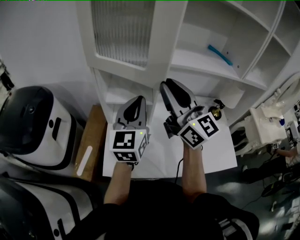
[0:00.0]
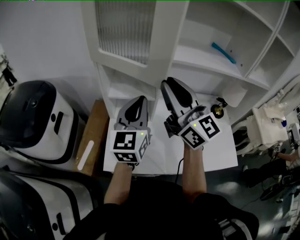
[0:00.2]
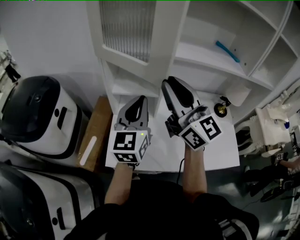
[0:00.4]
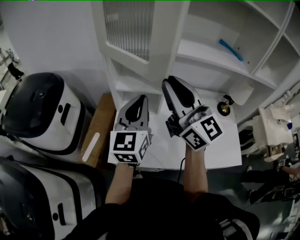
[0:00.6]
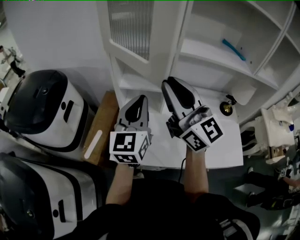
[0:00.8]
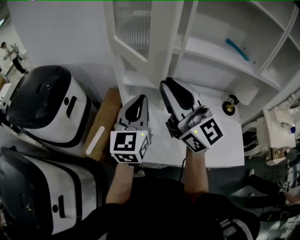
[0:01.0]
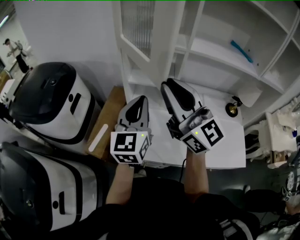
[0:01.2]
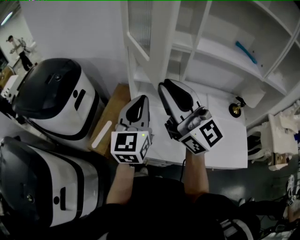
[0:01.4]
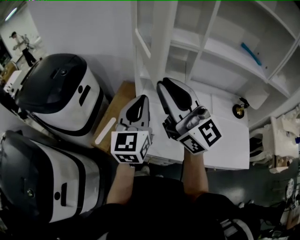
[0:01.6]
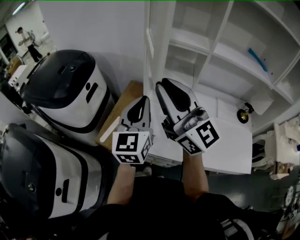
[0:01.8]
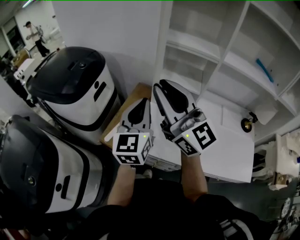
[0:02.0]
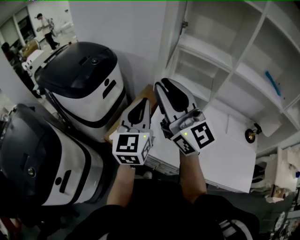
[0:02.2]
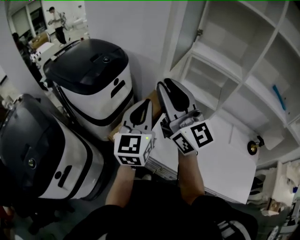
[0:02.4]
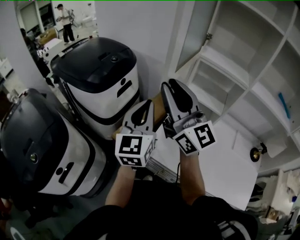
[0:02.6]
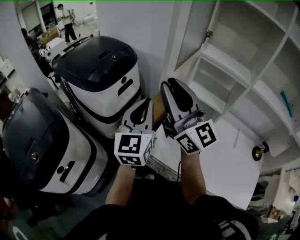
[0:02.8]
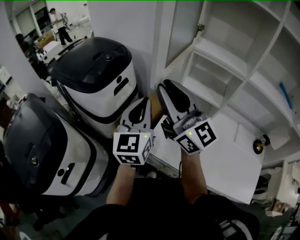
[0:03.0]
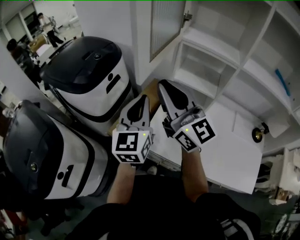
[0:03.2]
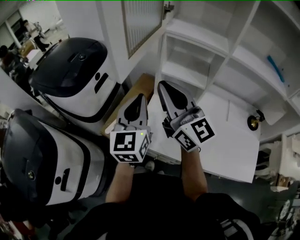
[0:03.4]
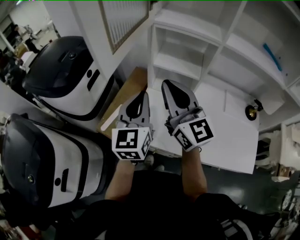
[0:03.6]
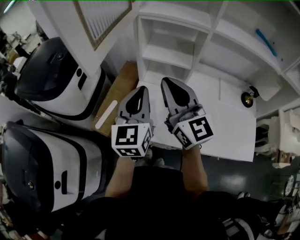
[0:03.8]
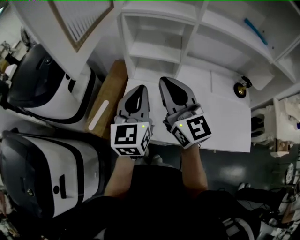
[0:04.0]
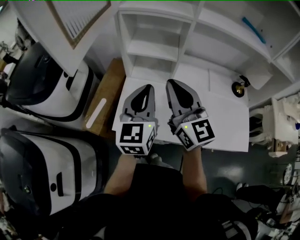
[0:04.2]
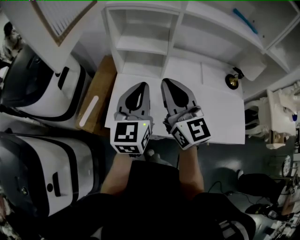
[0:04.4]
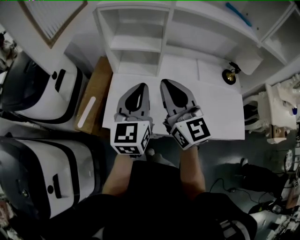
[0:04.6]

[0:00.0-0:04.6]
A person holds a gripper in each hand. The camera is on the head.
0.0 to 1.6 s: Both grippers move to the left and backward, some 15 cm.
1.6 to 3.0 s: The right gripper travels to the left and forward by about 15 cm; the left gripper is displaced to the left by about 15 cm.
3.0 to 4.6 s: The left gripper shifts by some 25 cm, and turns by some 30 degrees; the right gripper ends up about 30 cm from where it was, and turns by roughly 40 degrees.

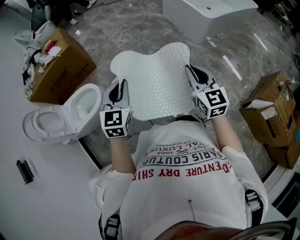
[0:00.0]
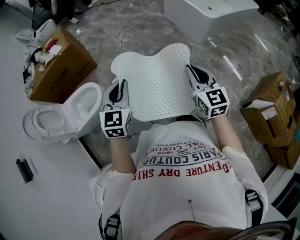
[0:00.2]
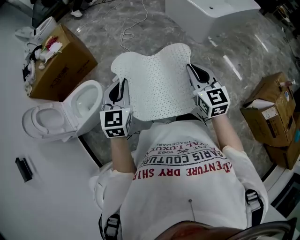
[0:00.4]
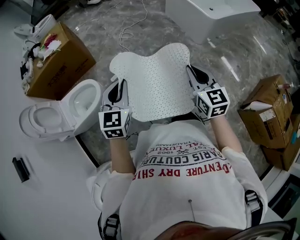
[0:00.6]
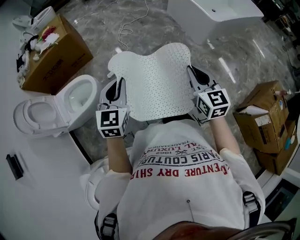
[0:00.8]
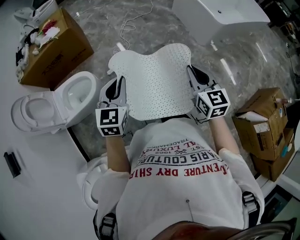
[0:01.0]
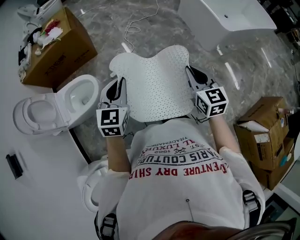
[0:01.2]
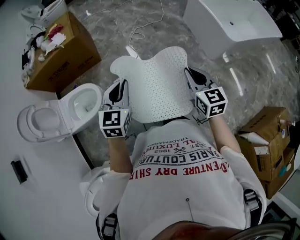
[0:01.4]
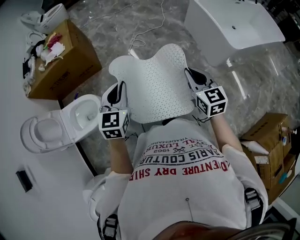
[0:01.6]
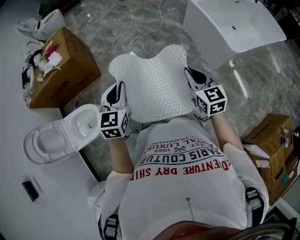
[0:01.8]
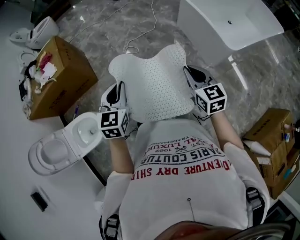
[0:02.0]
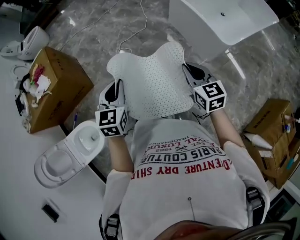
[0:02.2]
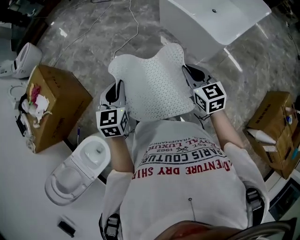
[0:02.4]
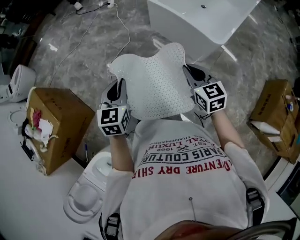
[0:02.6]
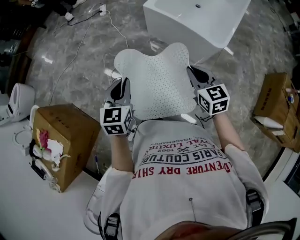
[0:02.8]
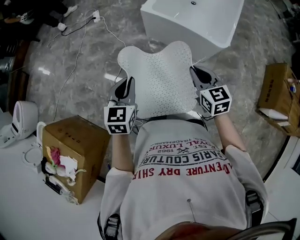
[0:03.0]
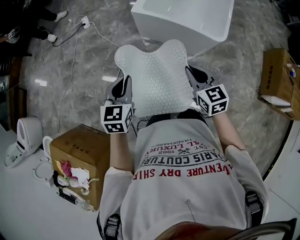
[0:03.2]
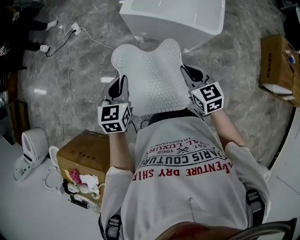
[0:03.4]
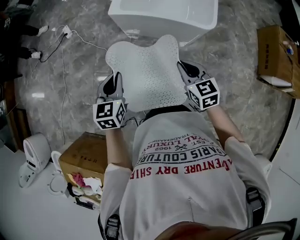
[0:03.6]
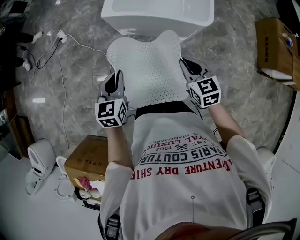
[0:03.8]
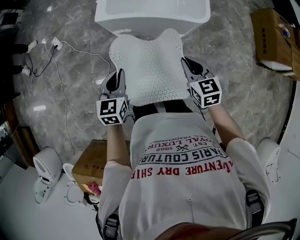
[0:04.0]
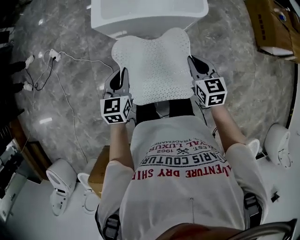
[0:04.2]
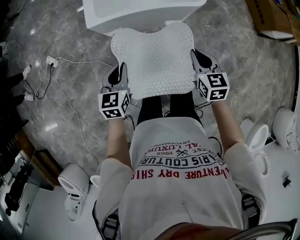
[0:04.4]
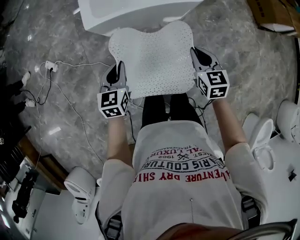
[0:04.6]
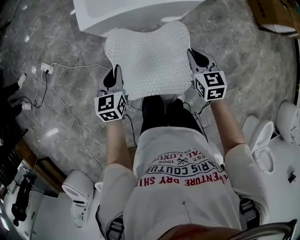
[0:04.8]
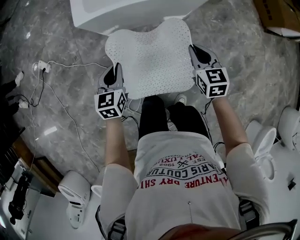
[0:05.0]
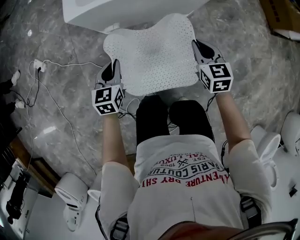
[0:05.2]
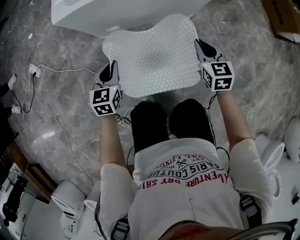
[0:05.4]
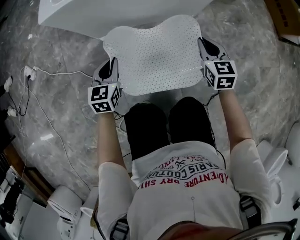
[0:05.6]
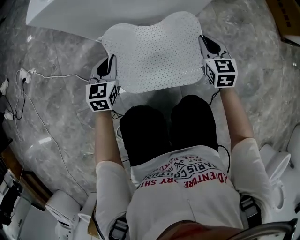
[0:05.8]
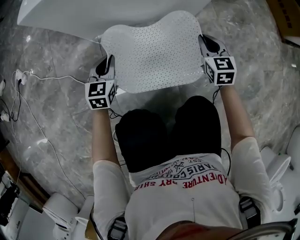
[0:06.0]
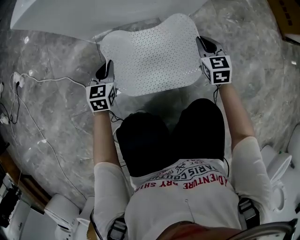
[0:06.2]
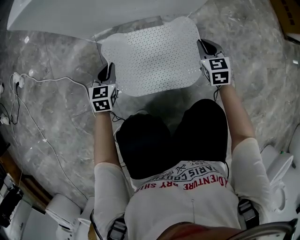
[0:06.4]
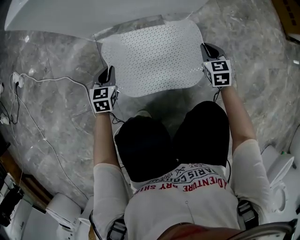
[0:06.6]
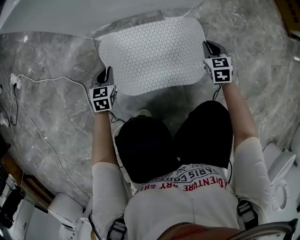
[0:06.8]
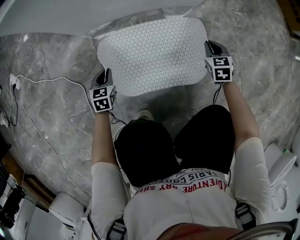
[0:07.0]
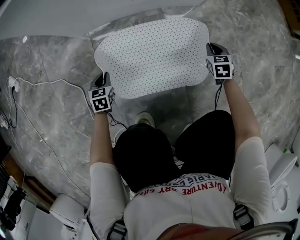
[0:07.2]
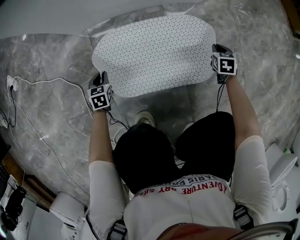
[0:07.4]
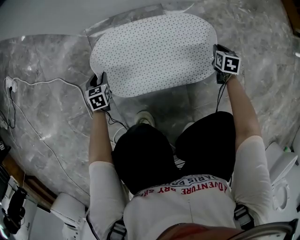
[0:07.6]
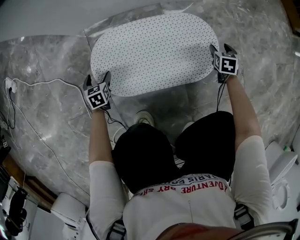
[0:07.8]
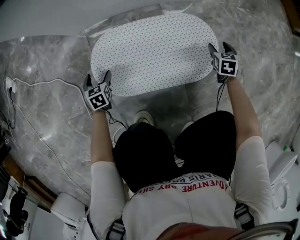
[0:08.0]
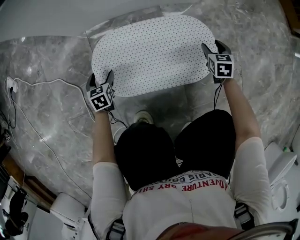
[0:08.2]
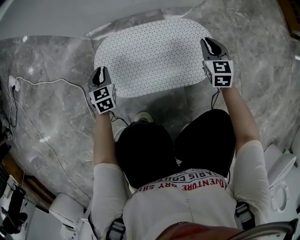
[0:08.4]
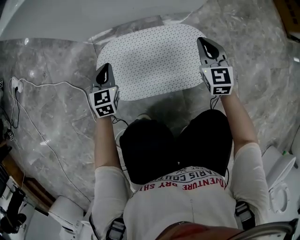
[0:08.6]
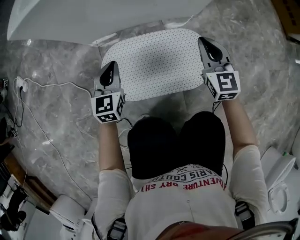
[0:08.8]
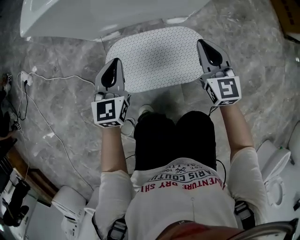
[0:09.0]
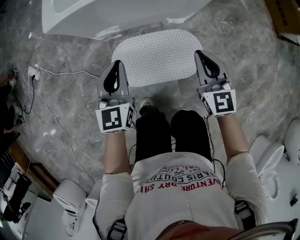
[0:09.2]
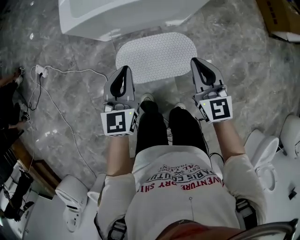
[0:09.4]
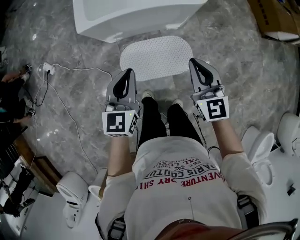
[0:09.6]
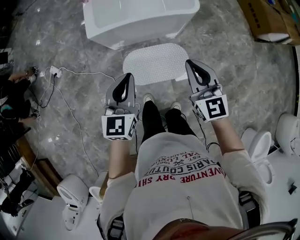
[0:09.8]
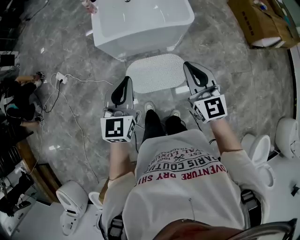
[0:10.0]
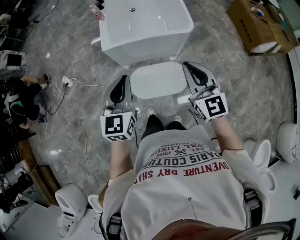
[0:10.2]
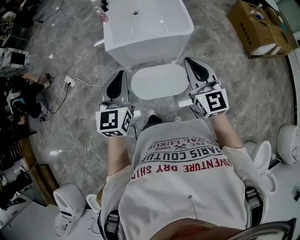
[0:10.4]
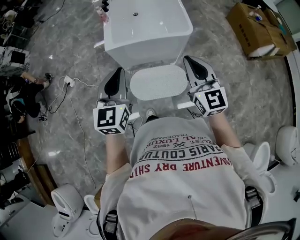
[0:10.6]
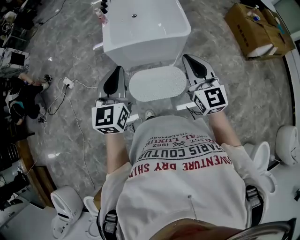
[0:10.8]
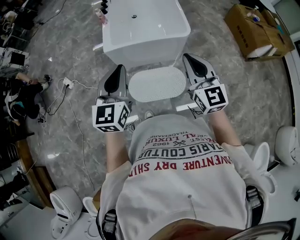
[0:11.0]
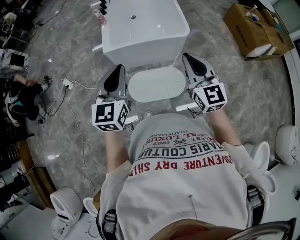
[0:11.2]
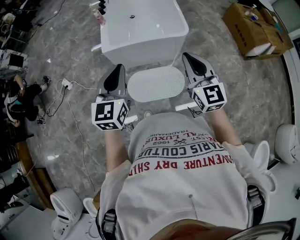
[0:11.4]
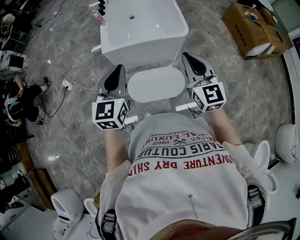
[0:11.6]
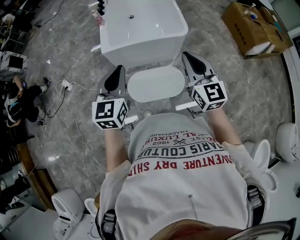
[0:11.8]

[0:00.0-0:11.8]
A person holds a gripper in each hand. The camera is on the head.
0.0 to 1.4 s: Both grippers move forward, approximately 20 cm.
1.4 to 3.0 s: Both grippers are carried some 60 cm. The left gripper turns by about 40 degrees. Meanwhile the right gripper changes its angle by roughly 40 degrees.
3.0 to 4.4 s: The left gripper moves some 30 cm, and changes its angle by roughly 40 degrees, while the right gripper goes approximately 15 cm downward, and changes its angle by roughly 40 degrees.
4.4 to 6.0 s: The grippers both shift downward by approximately 50 cm.
6.0 to 7.4 s: The right gripper is displaced downward and to the right by roughly 25 cm, and turns by about 30 degrees. Meanwhile the left gripper moves downward, approximately 25 cm, and changes its angle by approximately 30 degrees.
7.4 to 8.8 s: The left gripper is displaced upward and to the right by roughly 25 cm, rotates some 30 degrees, and opens, then closes again. The right gripper travels upward and to the left by approximately 30 cm, tips its fingers upward by roughly 40 degrees, and opens and closes again.
8.8 to 10.4 s: The two grippers go roughly 70 cm upward.
10.4 to 11.8 s: The grippers make only small movements.

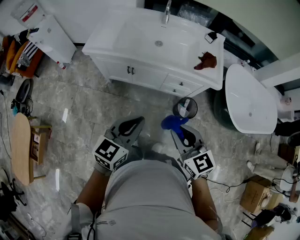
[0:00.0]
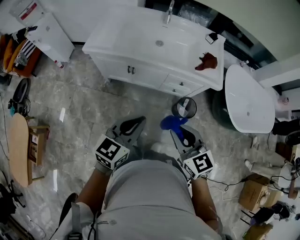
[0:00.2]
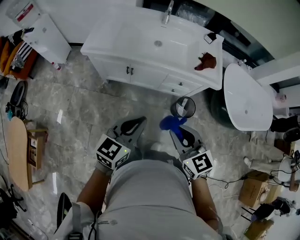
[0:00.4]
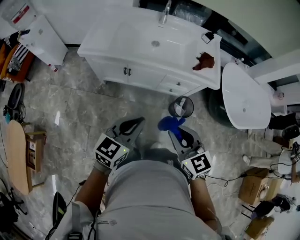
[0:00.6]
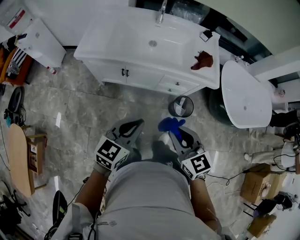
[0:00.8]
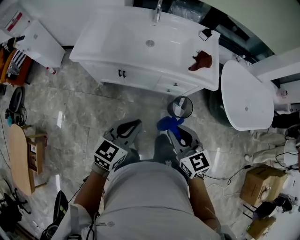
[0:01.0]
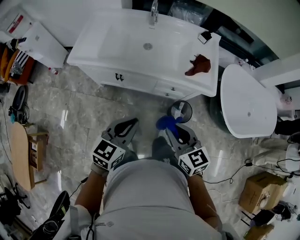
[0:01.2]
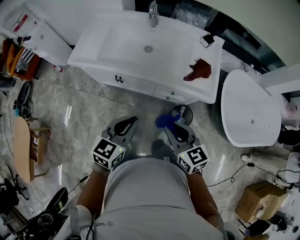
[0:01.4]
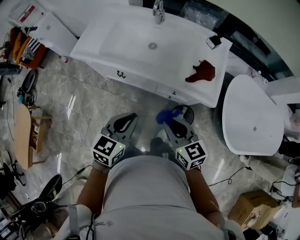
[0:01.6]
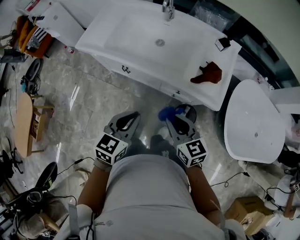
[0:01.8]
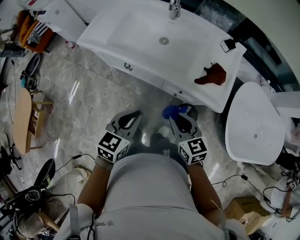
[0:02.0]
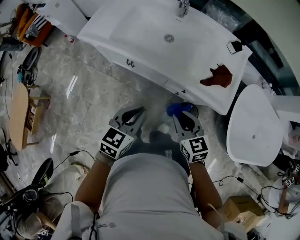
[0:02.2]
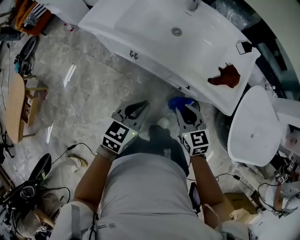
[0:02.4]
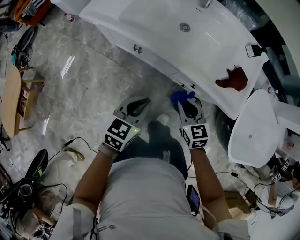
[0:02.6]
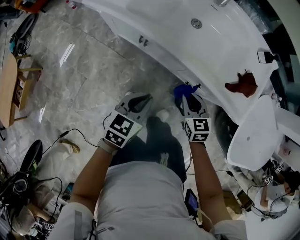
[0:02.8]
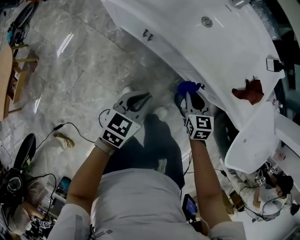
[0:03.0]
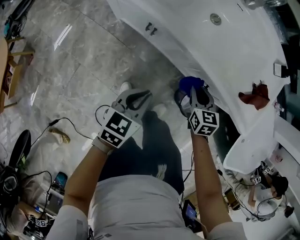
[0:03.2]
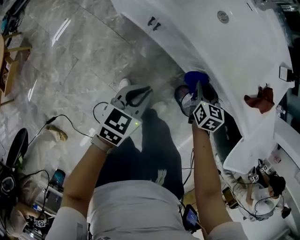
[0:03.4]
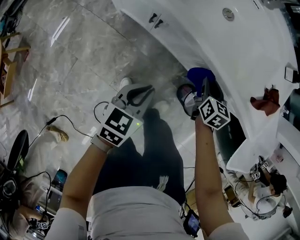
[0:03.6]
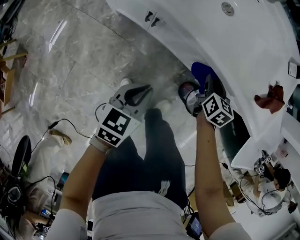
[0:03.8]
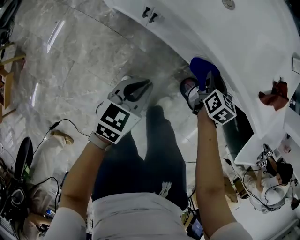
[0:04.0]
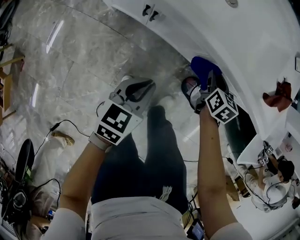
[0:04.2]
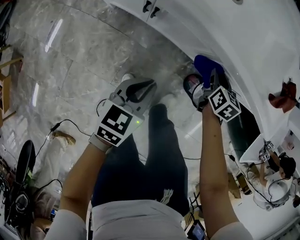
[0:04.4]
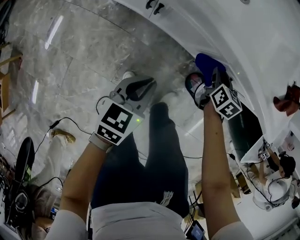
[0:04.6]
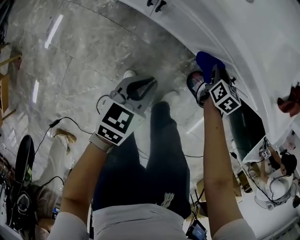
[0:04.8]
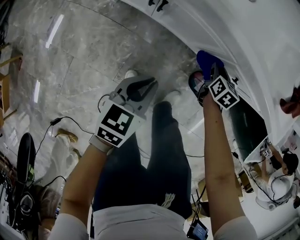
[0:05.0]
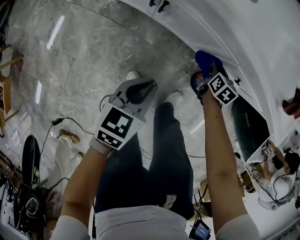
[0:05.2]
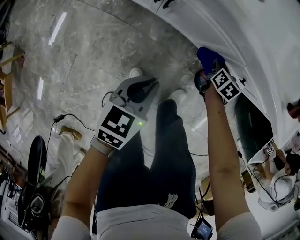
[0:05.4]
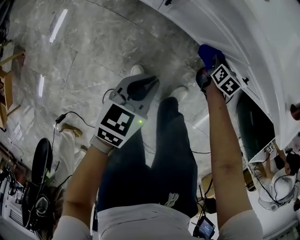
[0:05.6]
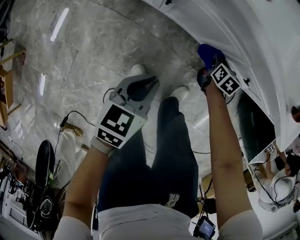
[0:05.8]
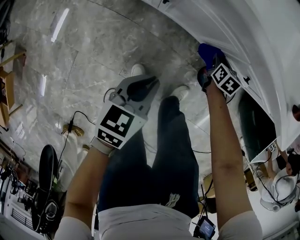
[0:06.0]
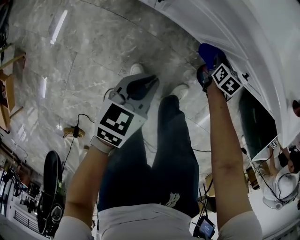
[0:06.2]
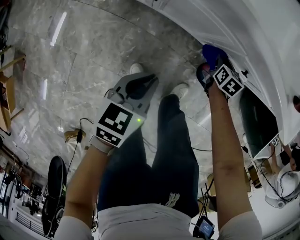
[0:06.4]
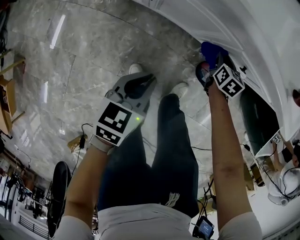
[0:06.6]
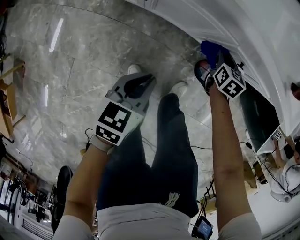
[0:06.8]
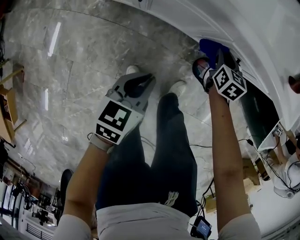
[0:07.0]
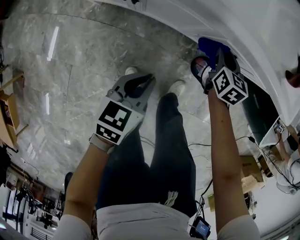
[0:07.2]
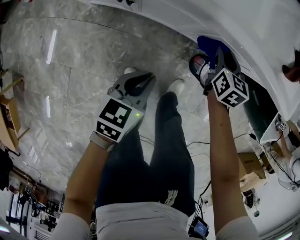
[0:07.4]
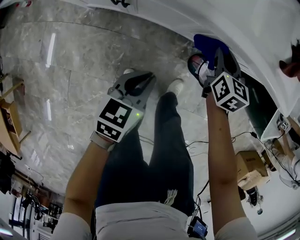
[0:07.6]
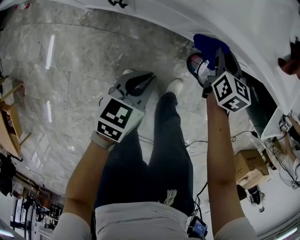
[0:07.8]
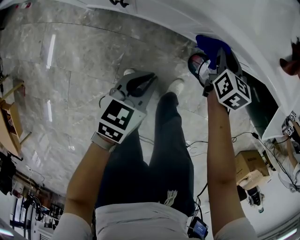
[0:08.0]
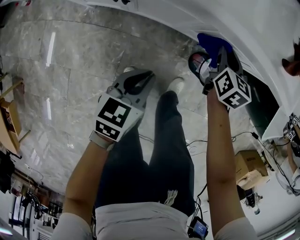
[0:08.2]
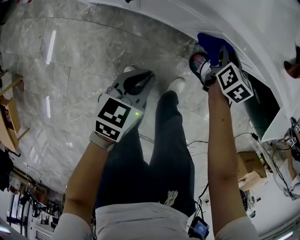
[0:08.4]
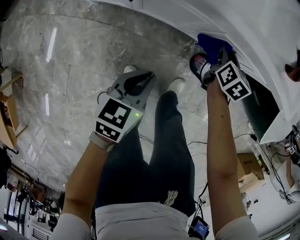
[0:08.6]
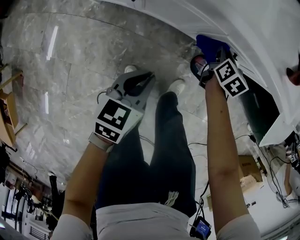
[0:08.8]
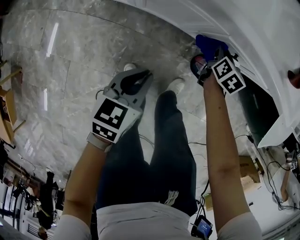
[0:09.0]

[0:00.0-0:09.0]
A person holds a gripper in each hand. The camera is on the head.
0.0 to 1.6 s: The grippers both shift forward and to the right by about 20 cm.
1.6 to 3.0 s: The left gripper goes roughly 20 cm downward and to the left. Meanwhile the right gripper is displaced downward and forward by roughly 25 cm, and changes its angle by approximately 20 degrees.
3.0 to 4.4 s: The right gripper goes roughly 15 cm downward and forward, and rotates approximately 30 degrees. Meanwhile the left gripper travels downward by some 15 cm.
4.4 to 6.0 s: The right gripper moves downward, roughly 15 cm. The left gripper ends up approximately 5 cm from where it was.
6.0 to 7.6 s: The right gripper travels upward by approximately 20 cm, while the left gripper shifts by approximately 5 cm.
7.6 to 9.0 s: The right gripper travels downward by about 10 cm.
